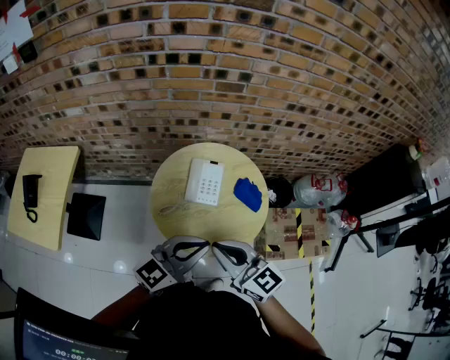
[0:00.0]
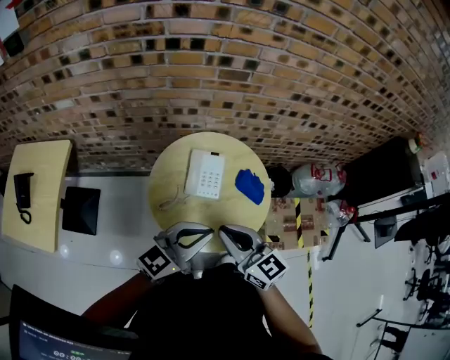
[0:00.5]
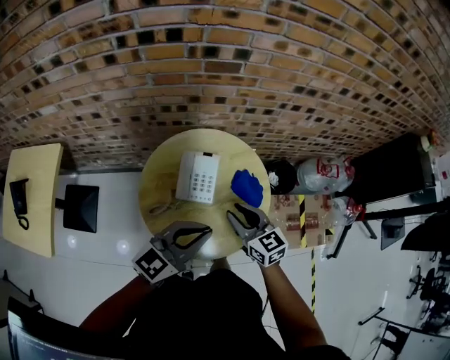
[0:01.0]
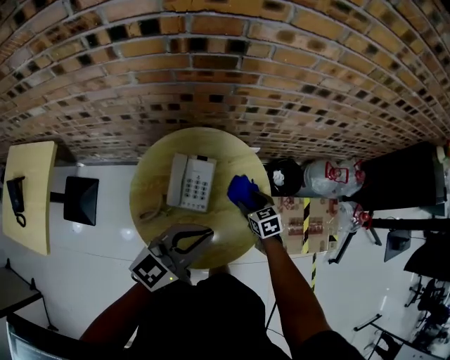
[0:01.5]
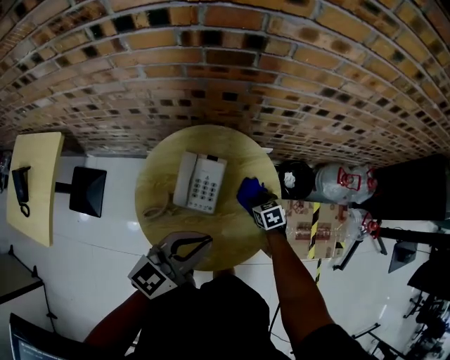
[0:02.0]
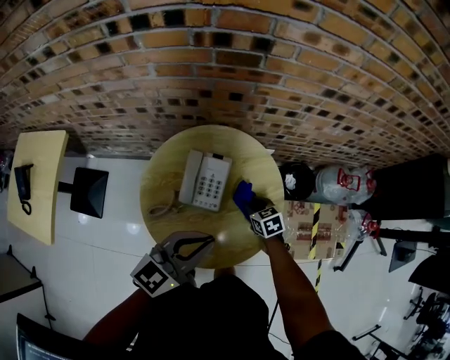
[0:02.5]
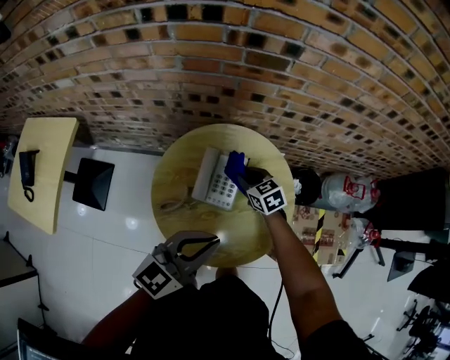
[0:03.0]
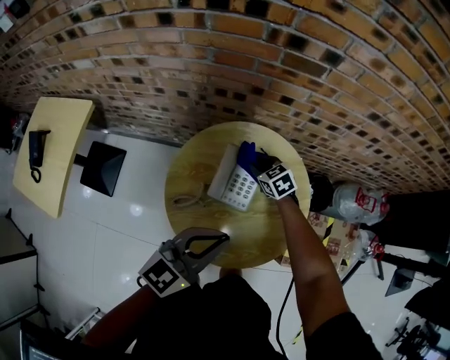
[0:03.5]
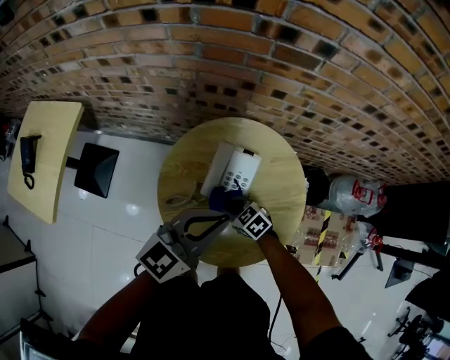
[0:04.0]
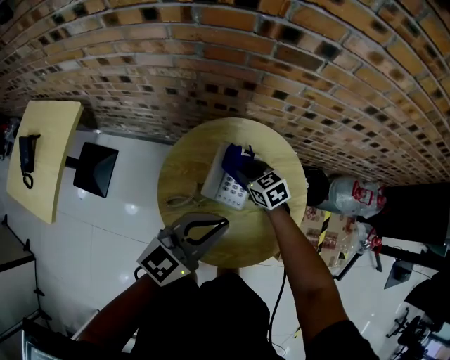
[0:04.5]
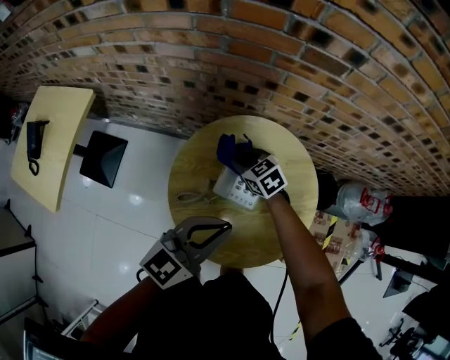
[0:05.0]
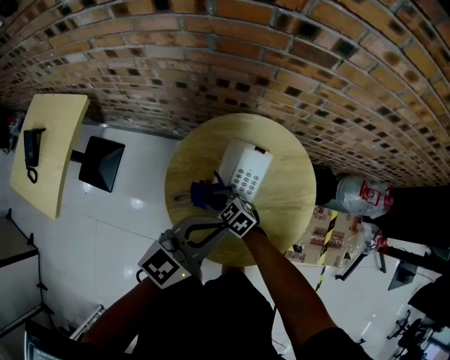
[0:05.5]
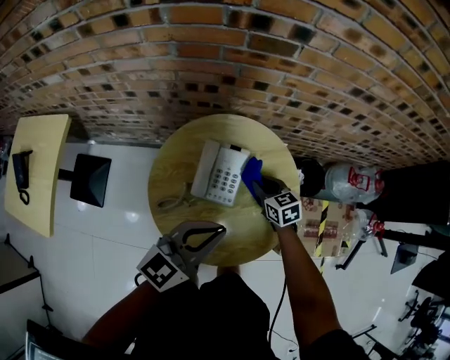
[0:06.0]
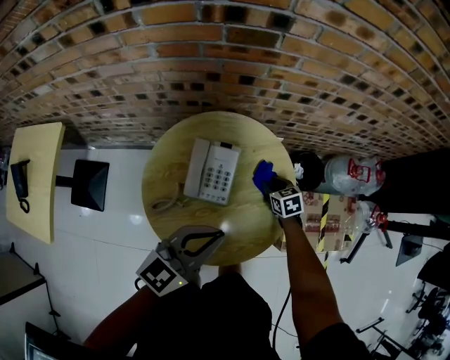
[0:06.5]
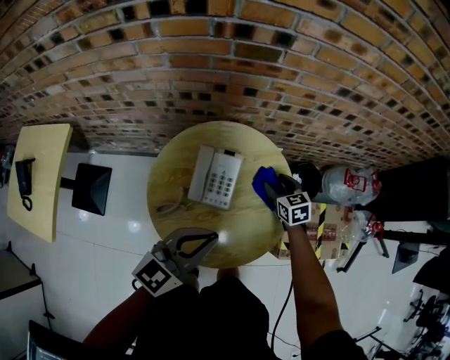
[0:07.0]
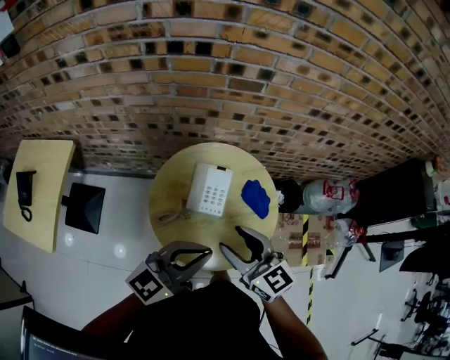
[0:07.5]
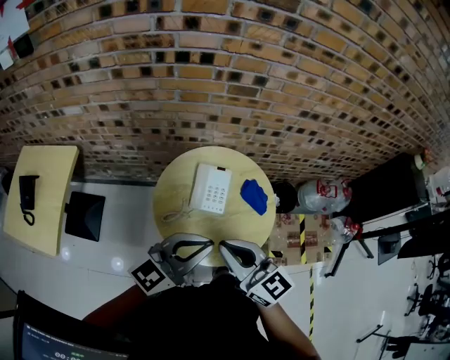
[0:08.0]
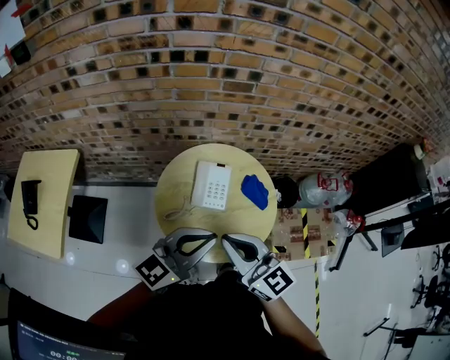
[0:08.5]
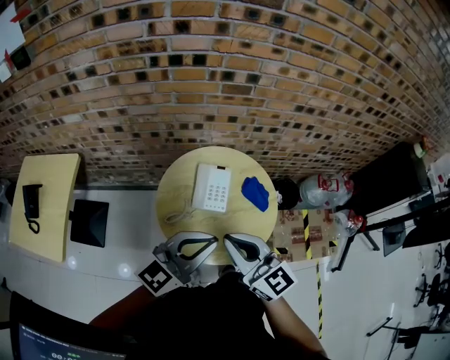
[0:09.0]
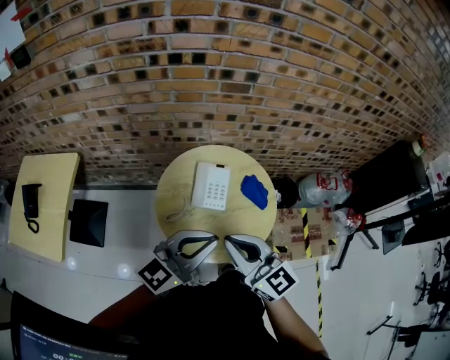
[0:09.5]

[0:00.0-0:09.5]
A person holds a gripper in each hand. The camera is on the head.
0.0 to 2.0 s: The right gripper is displaced downward, forward and to the right by some 50 cm, angles its fingers downward, by approximately 50 degrees, and opens. The left gripper heads forward and downward, covering roughly 20 cm.
2.0 to 4.0 s: The right gripper travels to the left by roughly 25 cm, turns by about 40 degrees, and closes up. The left gripper is displaced to the left by about 5 cm.
4.0 to 5.5 s: The right gripper moves to the left, about 10 cm, and goes forward and returns, some 15 cm each way.
5.5 to 7.5 s: The left gripper travels upward by approximately 10 cm; the right gripper moves upward, approximately 30 cm, tips its fingers upward by approximately 30 degrees, and opens its fingers.
7.5 to 9.5 s: The right gripper moves backward and upward, approximately 10 cm, and closes up. Meanwhile the left gripper changes place by approximately 5 cm.

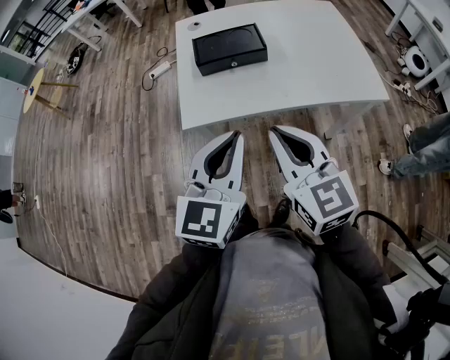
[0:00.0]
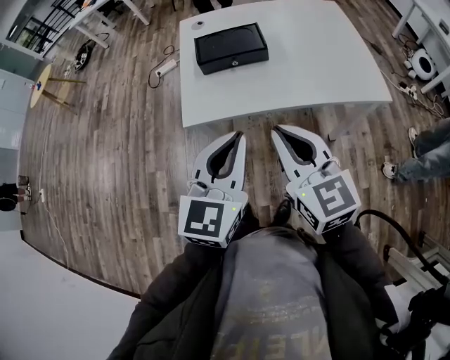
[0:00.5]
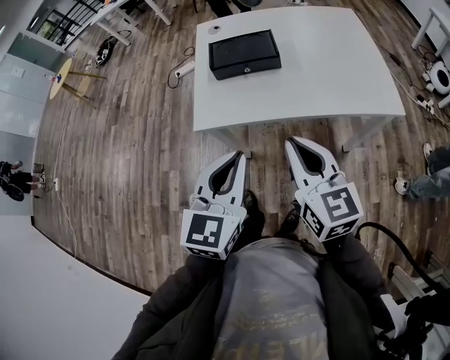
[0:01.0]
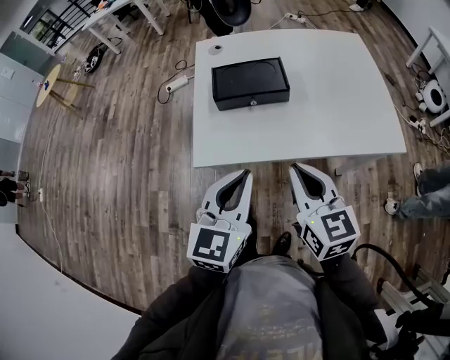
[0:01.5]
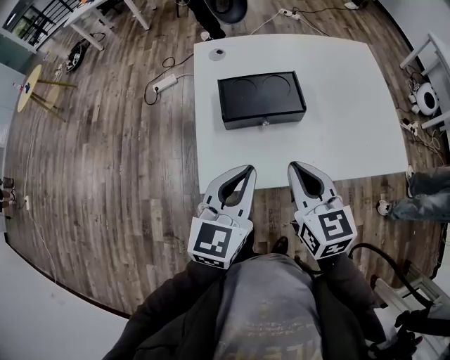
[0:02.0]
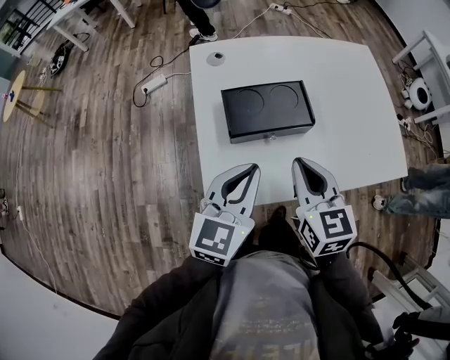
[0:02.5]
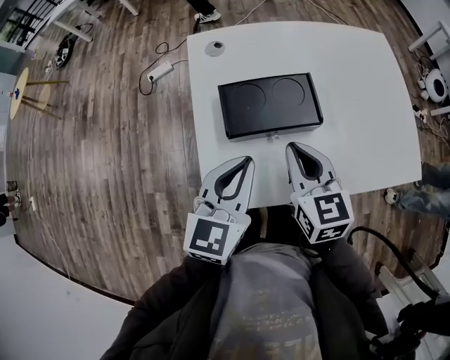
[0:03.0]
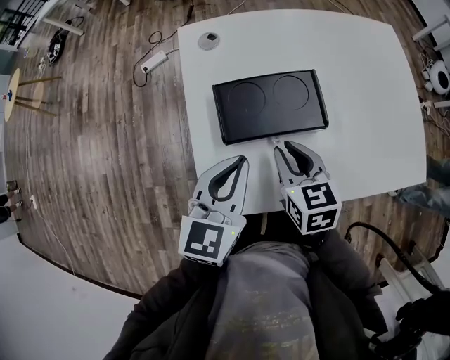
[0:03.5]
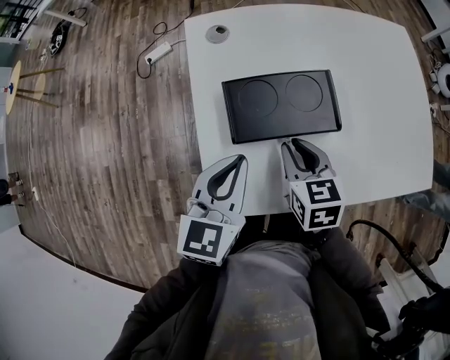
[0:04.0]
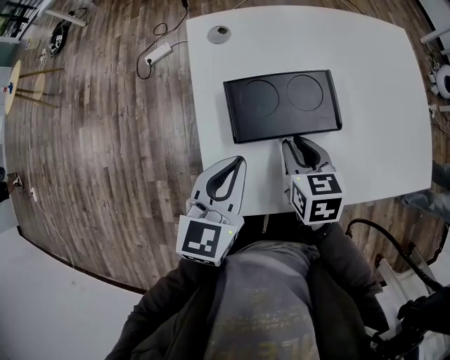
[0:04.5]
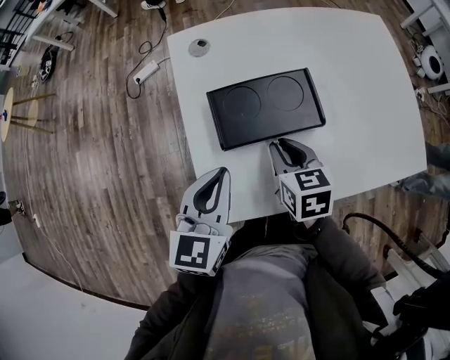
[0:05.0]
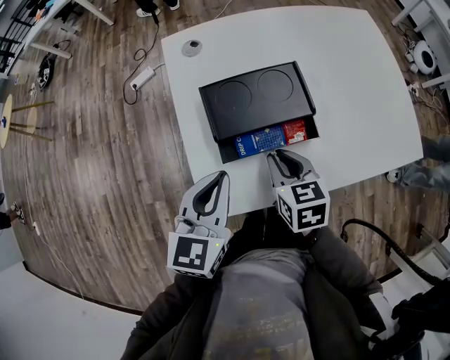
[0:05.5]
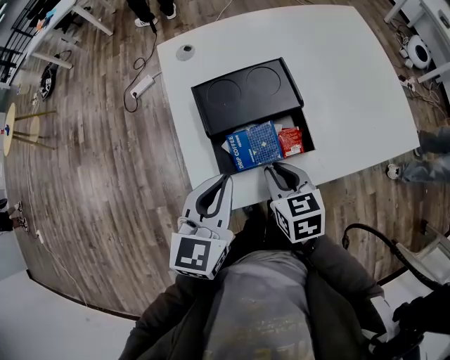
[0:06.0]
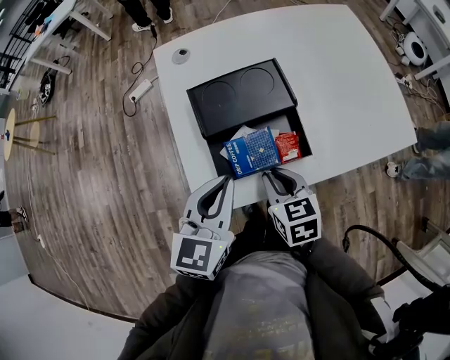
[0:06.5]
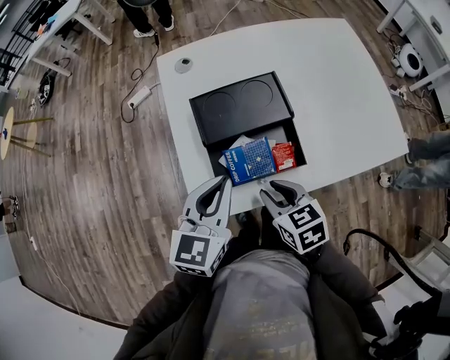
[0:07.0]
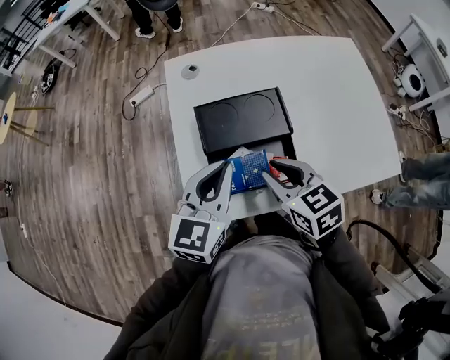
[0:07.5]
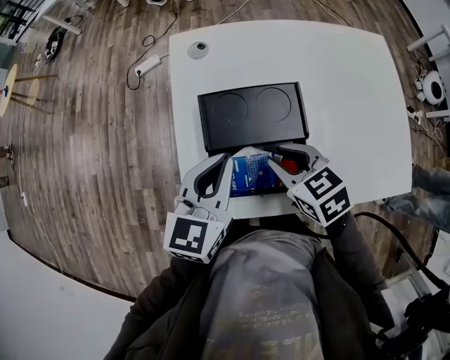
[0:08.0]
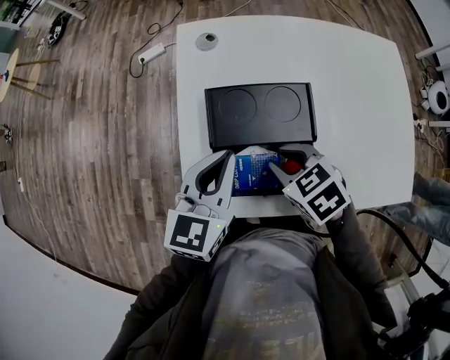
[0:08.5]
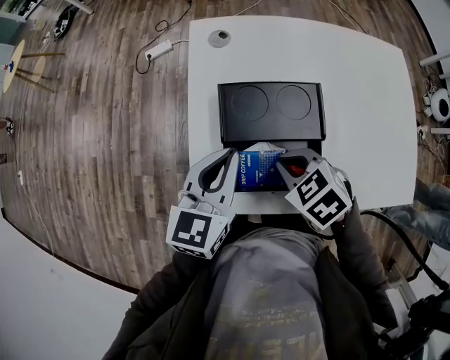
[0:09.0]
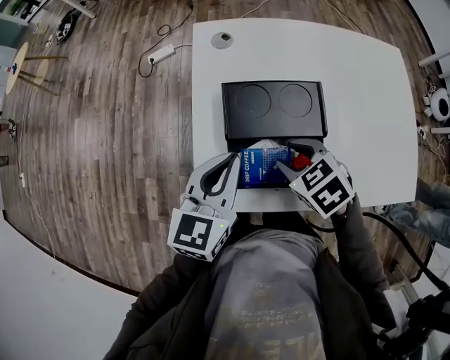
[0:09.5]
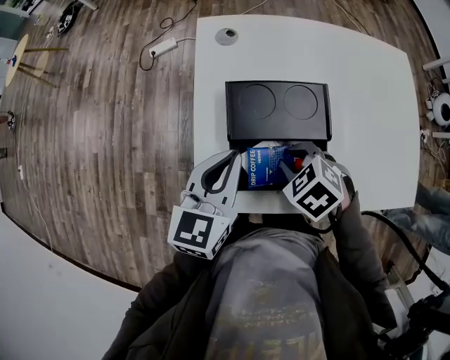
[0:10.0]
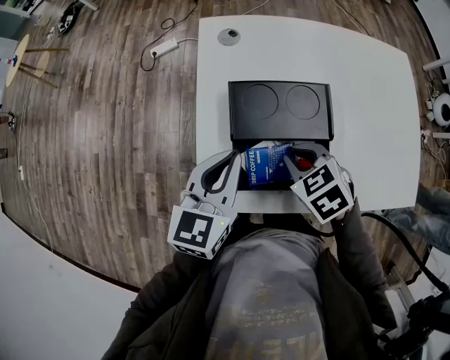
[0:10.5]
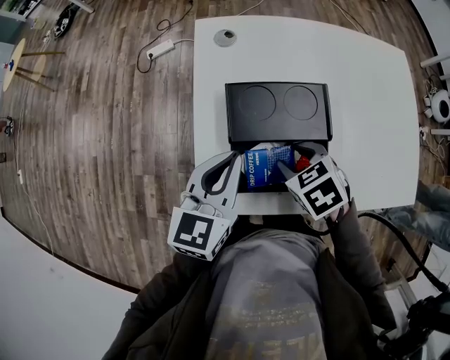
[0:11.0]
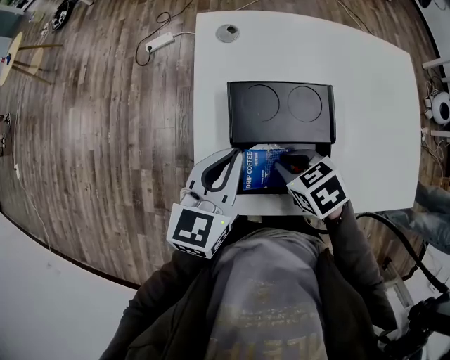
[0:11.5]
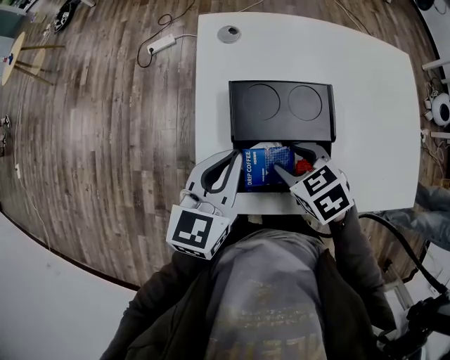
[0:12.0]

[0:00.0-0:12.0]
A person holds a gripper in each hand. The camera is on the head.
0.0 to 2.0 s: The right gripper is displaced forward and downward by approximately 20 cm. The left gripper shifts approximately 15 cm forward.
2.0 to 4.0 s: The left gripper heads forward, downward and to the left, covering about 15 cm, while the right gripper heads forward and downward, covering approximately 20 cm, and swivels approximately 20 degrees.
4.0 to 6.0 s: Both grippers travel together backward, some 10 cm.
6.0 to 8.0 s: Both grippers travel together forward, approximately 10 cm. The right gripper changes its angle by some 30 degrees.
8.0 to 10.0 s: The right gripper shifts by some 5 cm, swivels roughly 30 degrees, and closes, then reopens.
10.0 to 12.0 s: The right gripper opens.

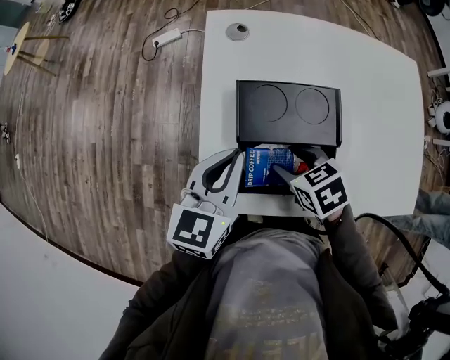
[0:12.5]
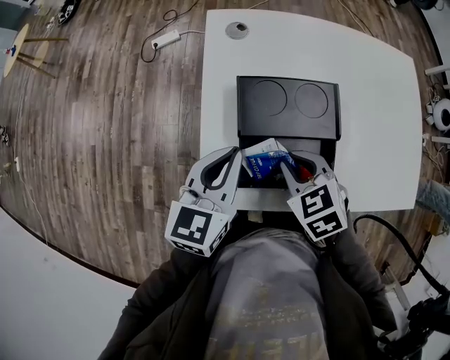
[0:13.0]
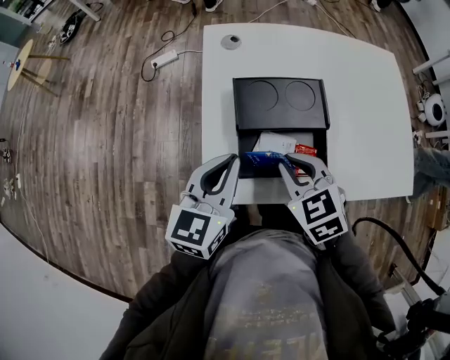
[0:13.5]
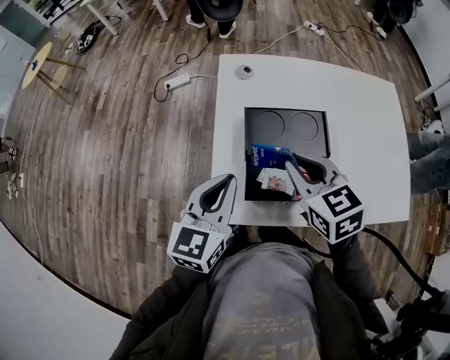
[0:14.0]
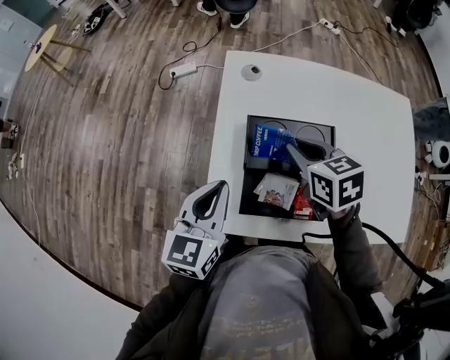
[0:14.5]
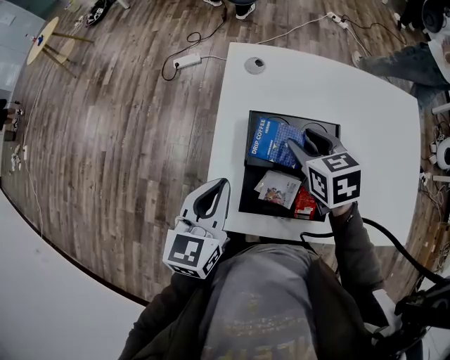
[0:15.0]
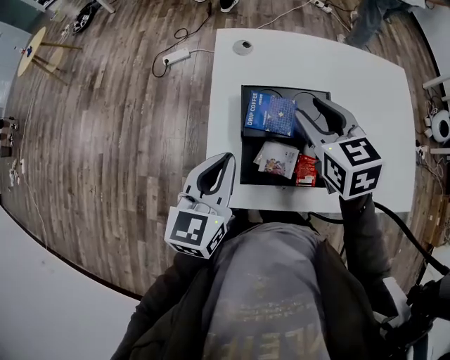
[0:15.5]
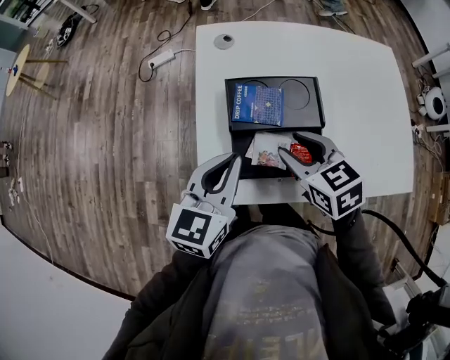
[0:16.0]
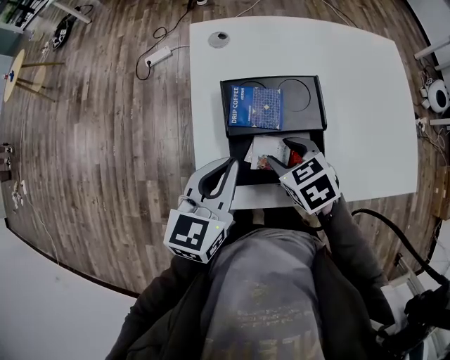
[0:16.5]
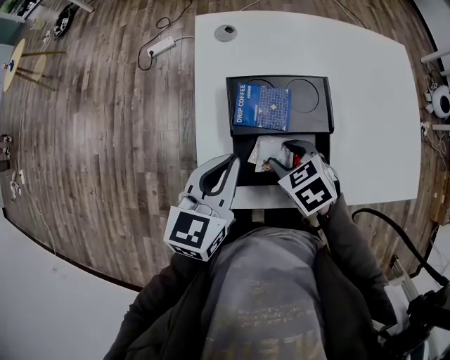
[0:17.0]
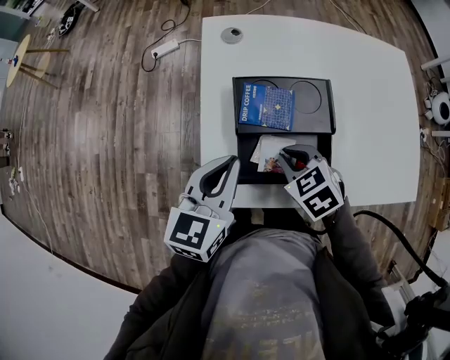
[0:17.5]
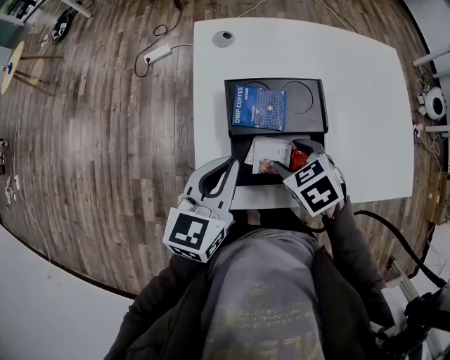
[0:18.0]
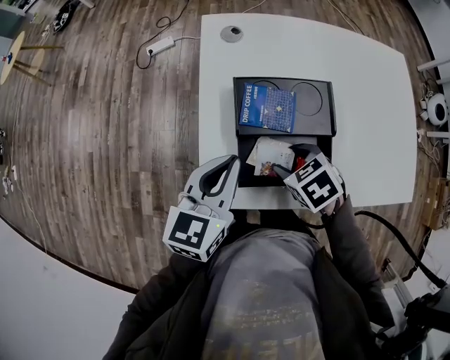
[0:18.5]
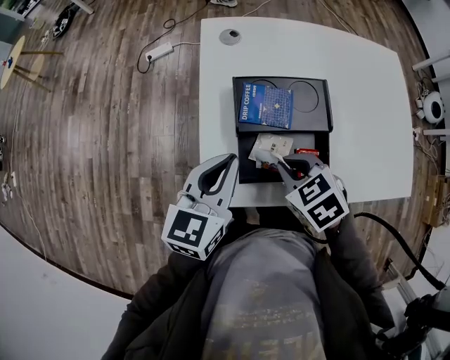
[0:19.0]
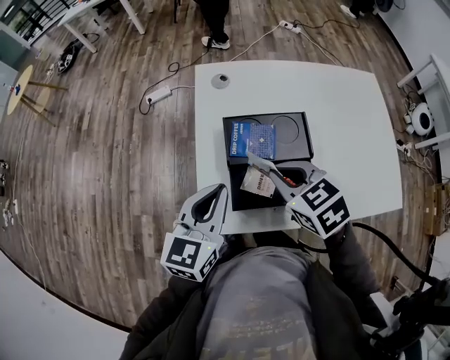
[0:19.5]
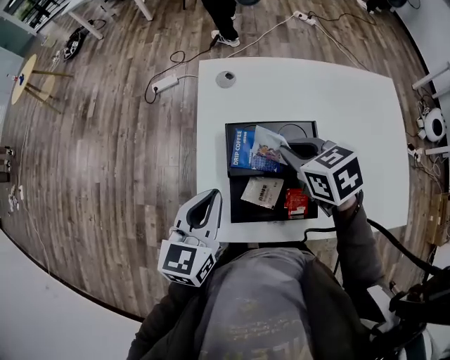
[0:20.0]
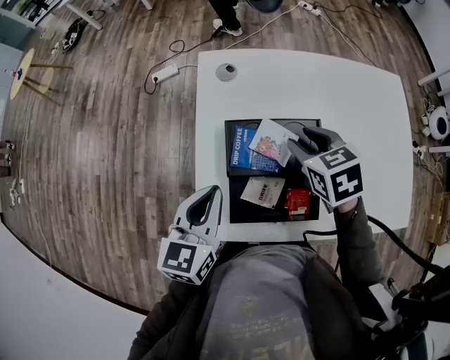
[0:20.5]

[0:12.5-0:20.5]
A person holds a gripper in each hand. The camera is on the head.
12.5 to 14.5 s: The left gripper changes place by roughly 5 cm. The right gripper shifts about 15 cm forward and upward, and closes its fingers.
14.5 to 16.5 s: The right gripper moves backward and downward, approximately 15 cm, and opens up. Meanwhile the left gripper changes place by about 5 cm.
16.5 to 18.5 s: The right gripper closes and opens again.
18.5 to 20.5 s: The right gripper heads forward, upward and to the right, covering some 20 cm, turns by approximately 20 degrees, and closes and opens again.
